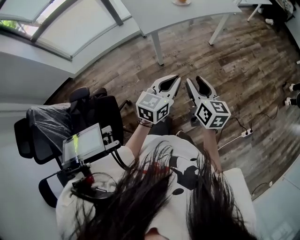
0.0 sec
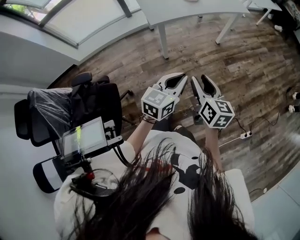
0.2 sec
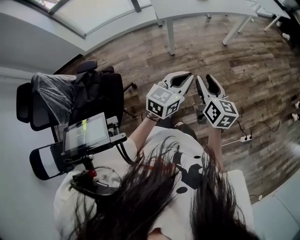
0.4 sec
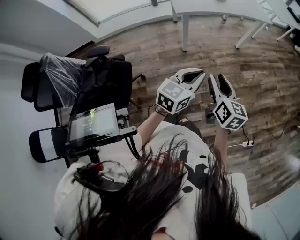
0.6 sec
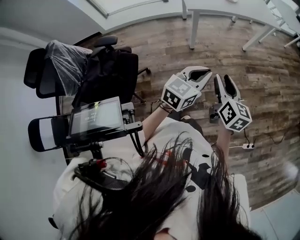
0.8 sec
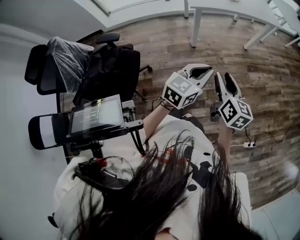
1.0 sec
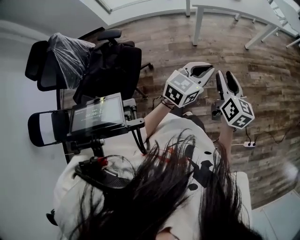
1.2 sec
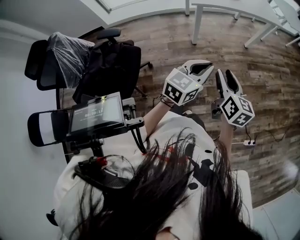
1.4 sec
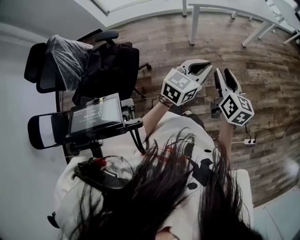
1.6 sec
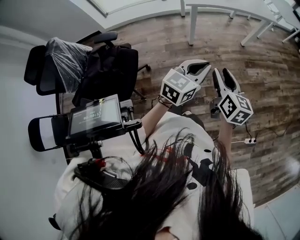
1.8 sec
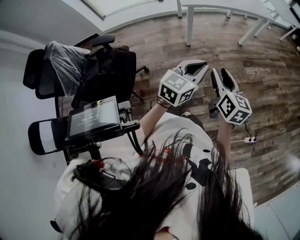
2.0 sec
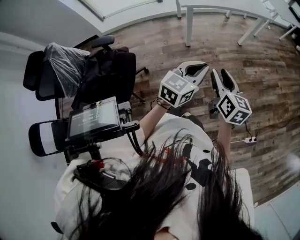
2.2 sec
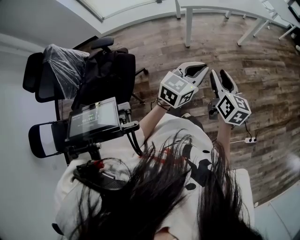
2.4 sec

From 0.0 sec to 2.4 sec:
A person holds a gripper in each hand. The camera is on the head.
From 0.0 sec to 1.2 sec: The two grippers go some 5 cm backward.
From 1.2 sec to 2.4 sec: There are only small adjustments of the grippers.

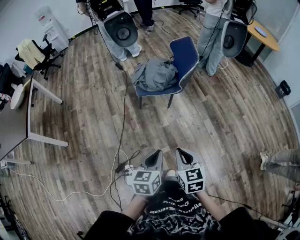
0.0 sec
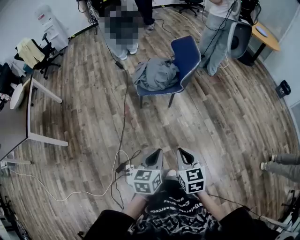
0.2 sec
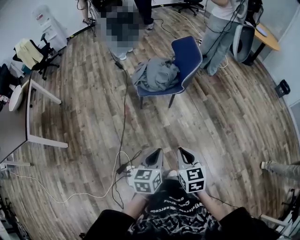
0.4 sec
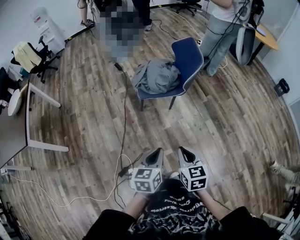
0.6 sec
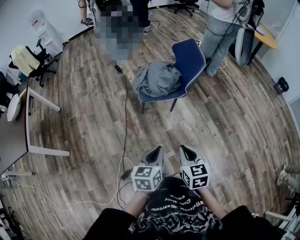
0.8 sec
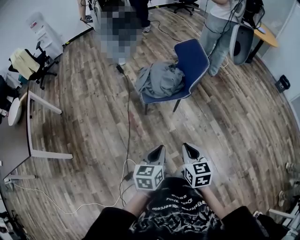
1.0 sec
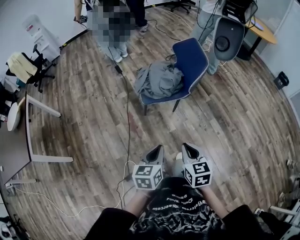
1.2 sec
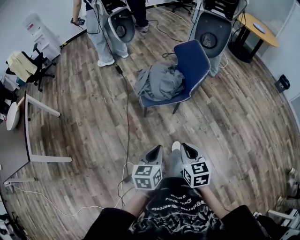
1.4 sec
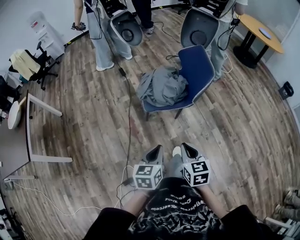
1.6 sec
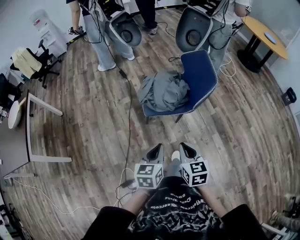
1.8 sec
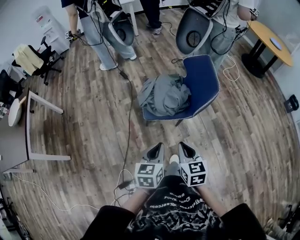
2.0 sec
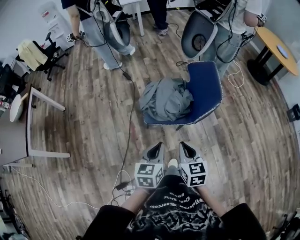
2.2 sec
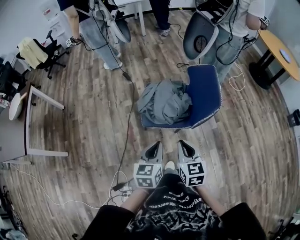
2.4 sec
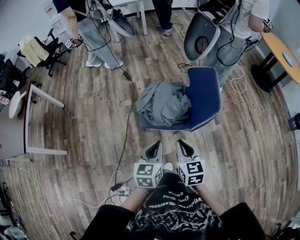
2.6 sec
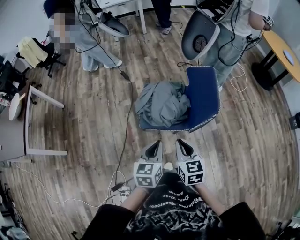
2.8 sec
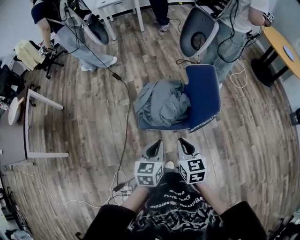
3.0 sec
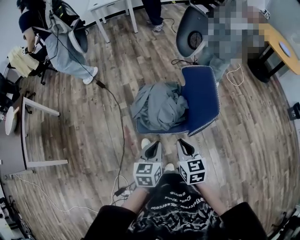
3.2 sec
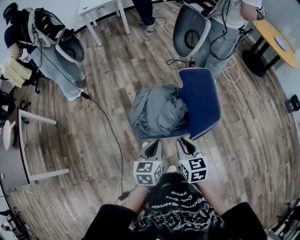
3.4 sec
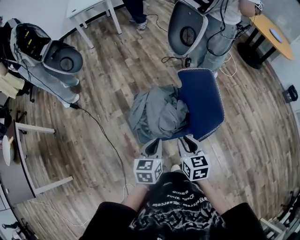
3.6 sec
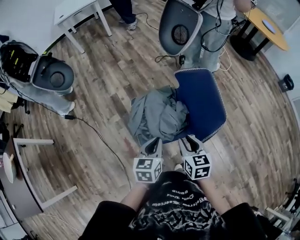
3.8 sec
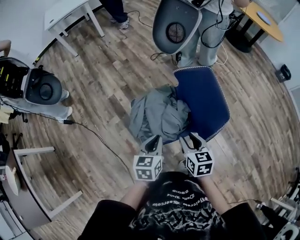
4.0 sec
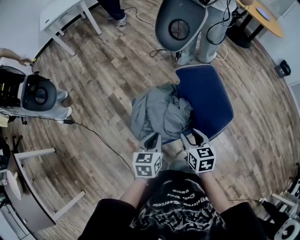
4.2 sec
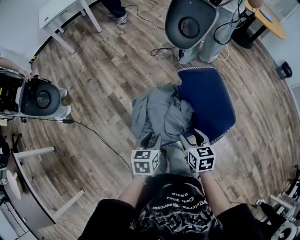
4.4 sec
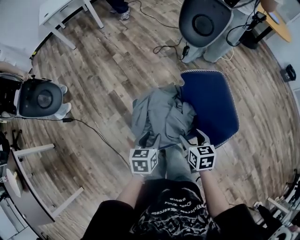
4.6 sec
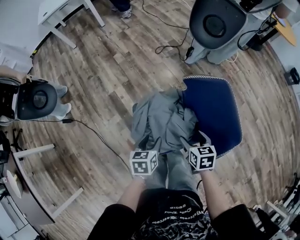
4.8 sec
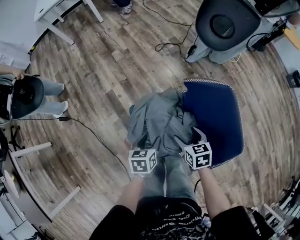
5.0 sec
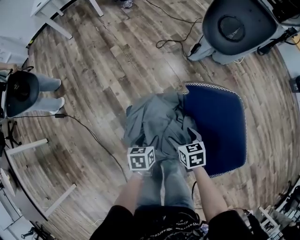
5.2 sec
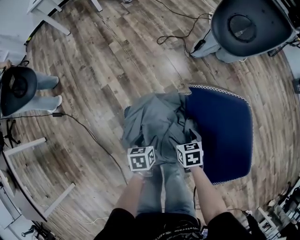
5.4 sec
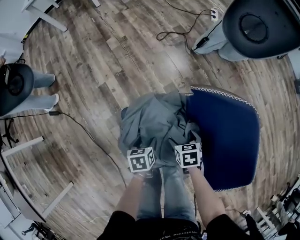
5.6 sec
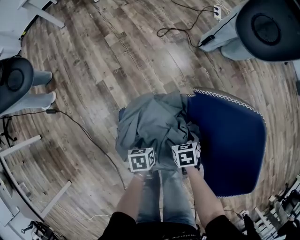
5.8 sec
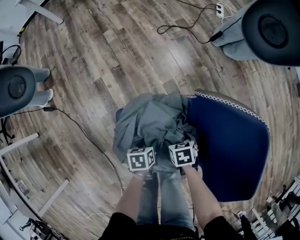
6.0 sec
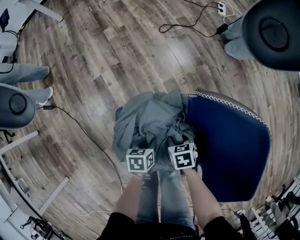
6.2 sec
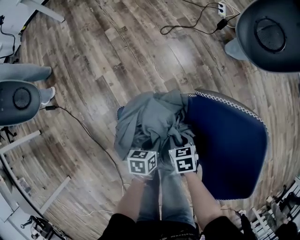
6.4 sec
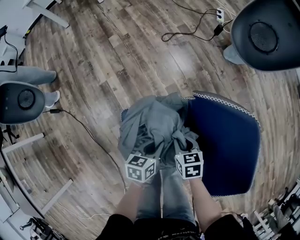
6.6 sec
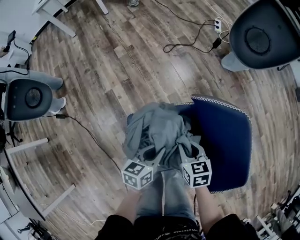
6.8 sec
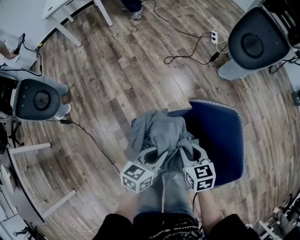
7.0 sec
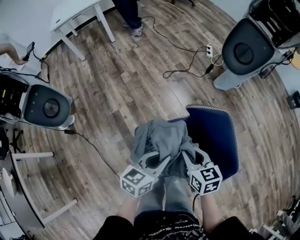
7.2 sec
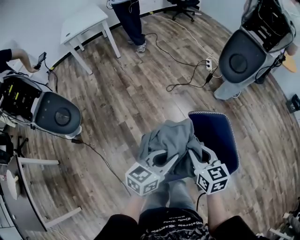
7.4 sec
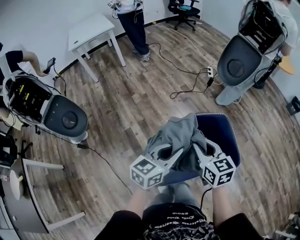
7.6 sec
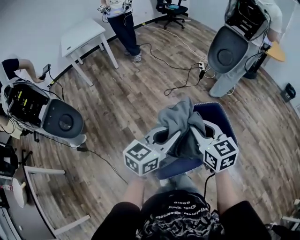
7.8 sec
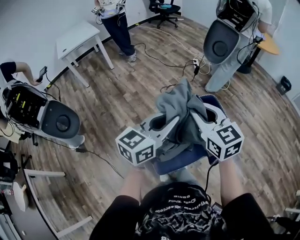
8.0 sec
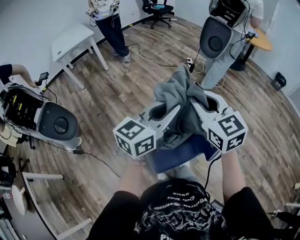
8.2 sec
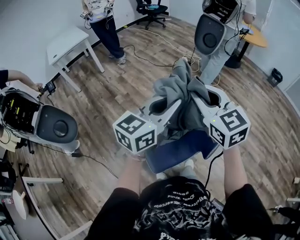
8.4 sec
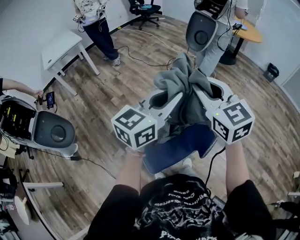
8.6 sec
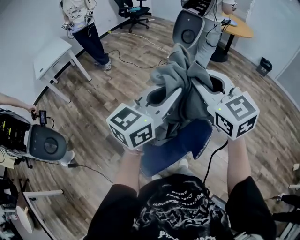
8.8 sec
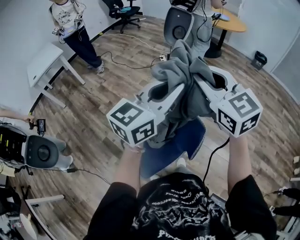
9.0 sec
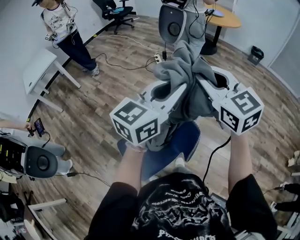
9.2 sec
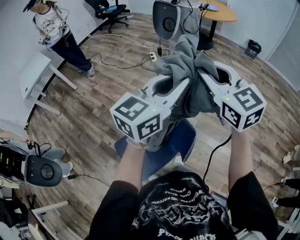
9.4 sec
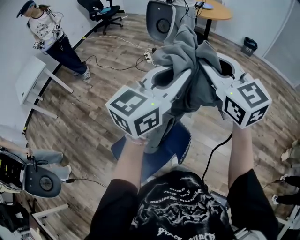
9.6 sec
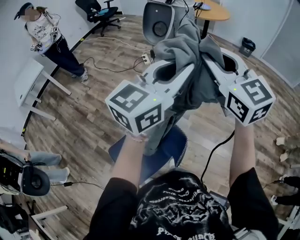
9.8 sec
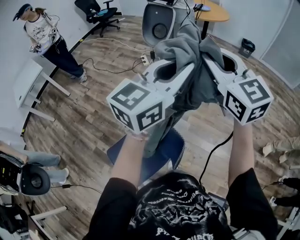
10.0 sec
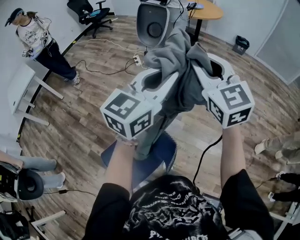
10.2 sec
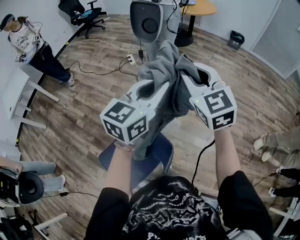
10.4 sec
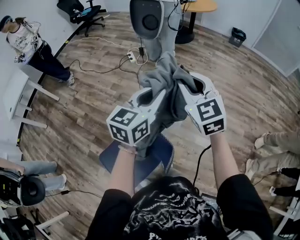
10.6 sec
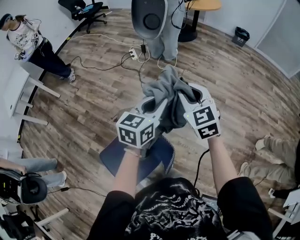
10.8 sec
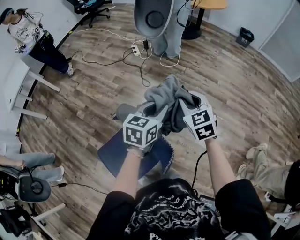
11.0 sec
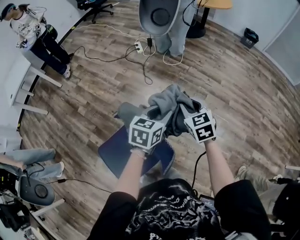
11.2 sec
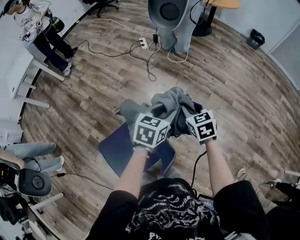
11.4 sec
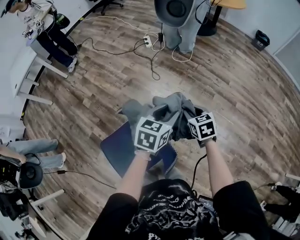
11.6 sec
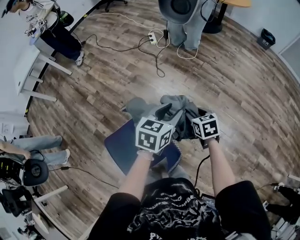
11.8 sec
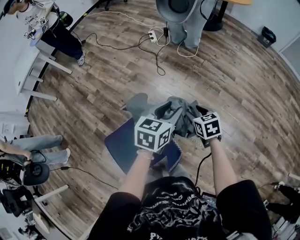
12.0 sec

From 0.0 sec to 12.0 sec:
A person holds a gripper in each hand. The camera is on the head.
From 0.0 sec to 1.6 sec: Both grippers move forward and to the left, some 20 cm.
From 1.6 sec to 3.0 sec: The right gripper shifts some 20 cm forward. The left gripper goes roughly 20 cm forward and to the right.
From 3.0 sec to 4.4 sec: The left gripper moves forward and to the left, roughly 25 cm, changes its angle by about 30 degrees, and opens. Meanwhile the right gripper heads forward, covering some 15 cm, changes its angle by approximately 30 degrees, and opens its fingers.
From 4.4 sec to 6.0 sec: The left gripper moves downward, about 30 cm, rotates some 30 degrees, and opens up. Meanwhile the right gripper goes roughly 30 cm downward and forward, rotates some 40 degrees, and opens.
From 6.0 sec to 7.6 sec: Both grippers move upward, approximately 40 cm. The right gripper points its fingers about 50 degrees further upward, and closes up. The left gripper angles its fingers upward, by roughly 50 degrees, and closes.
From 7.6 sec to 9.0 sec: Both grippers travel together upward and to the right, approximately 30 cm. The left gripper turns by approximately 30 degrees. The right gripper turns by some 30 degrees.
From 9.0 sec to 10.4 sec: The two grippers go approximately 20 cm forward and to the right.
From 10.4 sec to 12.0 sec: The right gripper travels downward by about 35 cm, and angles its fingers downward, by roughly 40 degrees. The left gripper shifts approximately 20 cm downward, rotates about 30 degrees, and opens its fingers.

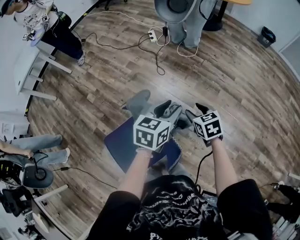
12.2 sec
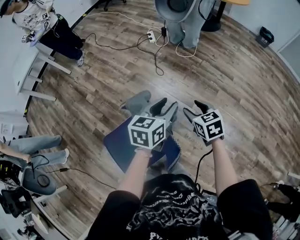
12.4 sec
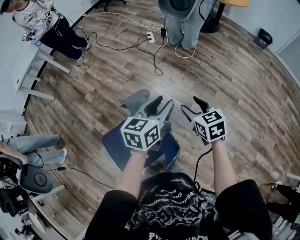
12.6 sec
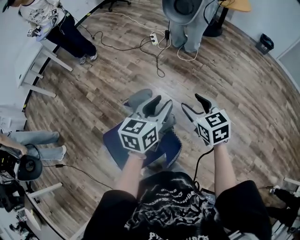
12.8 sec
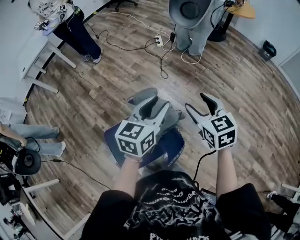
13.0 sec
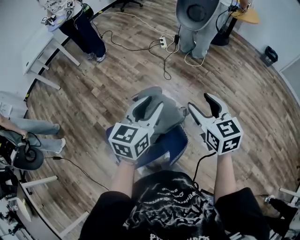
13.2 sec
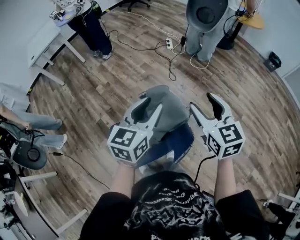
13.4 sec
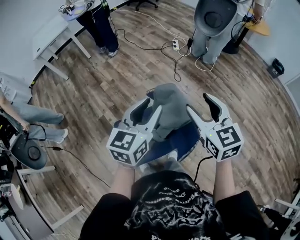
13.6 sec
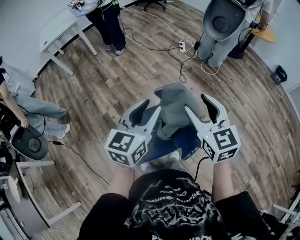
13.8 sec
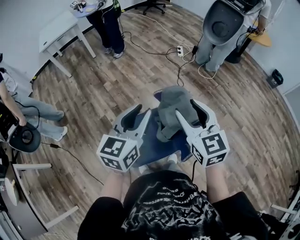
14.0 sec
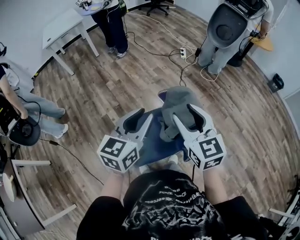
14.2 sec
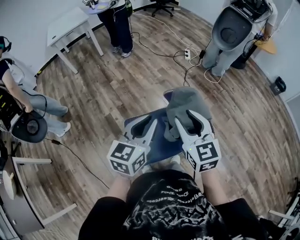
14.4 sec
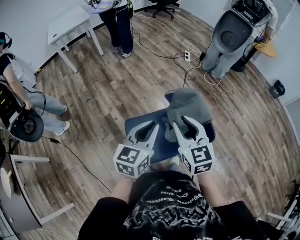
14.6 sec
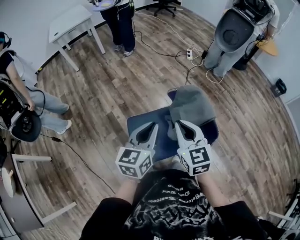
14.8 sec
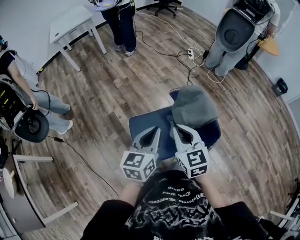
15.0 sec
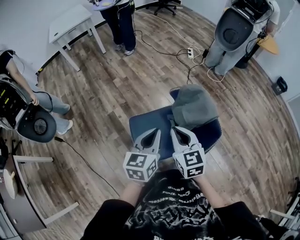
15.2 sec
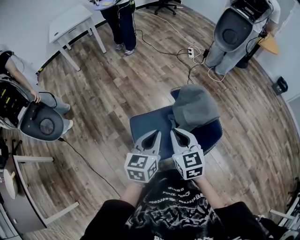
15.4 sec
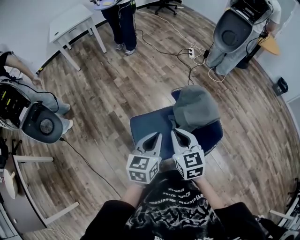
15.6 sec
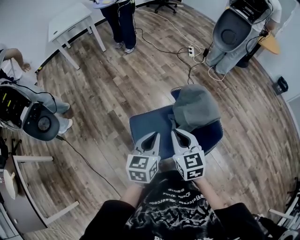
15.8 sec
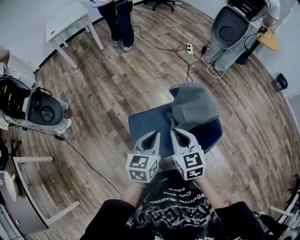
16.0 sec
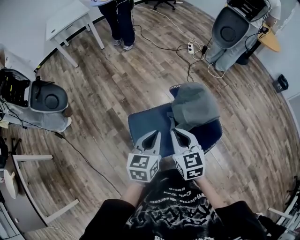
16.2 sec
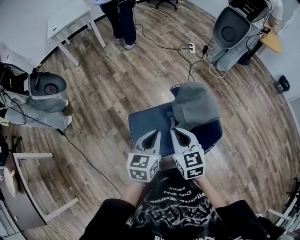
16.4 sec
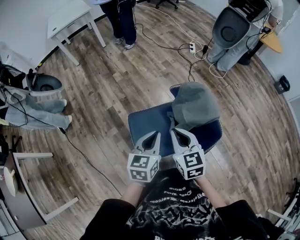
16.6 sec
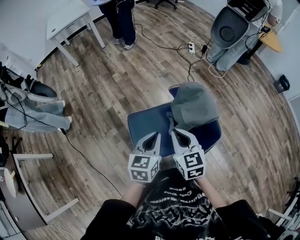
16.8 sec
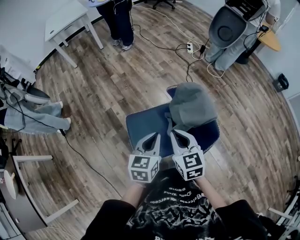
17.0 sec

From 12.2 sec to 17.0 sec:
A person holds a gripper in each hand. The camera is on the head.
From 12.2 sec to 13.8 sec: The left gripper moves to the left, upward and backward, roughly 30 cm, and swivels some 30 degrees. Meanwhile the right gripper shifts roughly 35 cm upward, to the left and backward, and points its fingers roughly 30 degrees further upward.
From 13.8 sec to 15.4 sec: The right gripper heads to the left, downward and backward, covering about 20 cm, and closes up, while the left gripper is displaced downward, backward and to the left by approximately 20 cm, and closes.
From 15.4 sec to 17.0 sec: The grippers make only small movements.

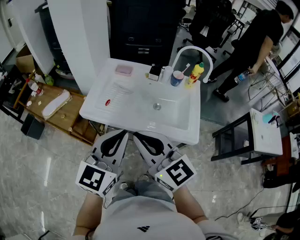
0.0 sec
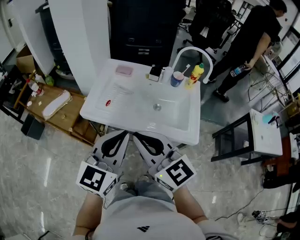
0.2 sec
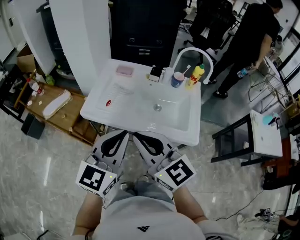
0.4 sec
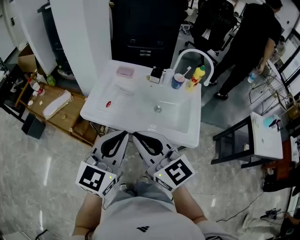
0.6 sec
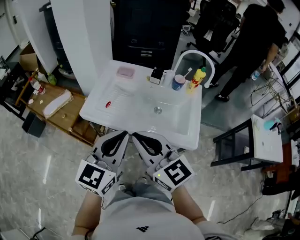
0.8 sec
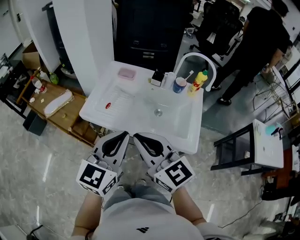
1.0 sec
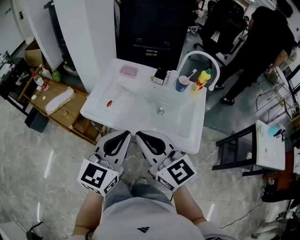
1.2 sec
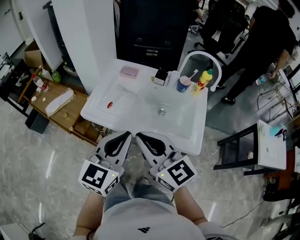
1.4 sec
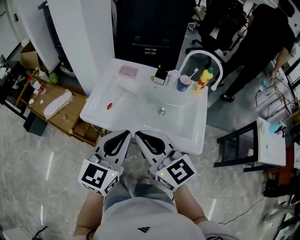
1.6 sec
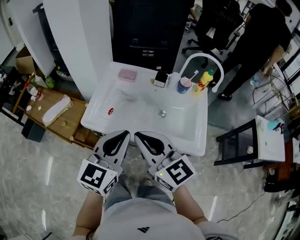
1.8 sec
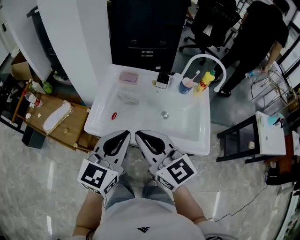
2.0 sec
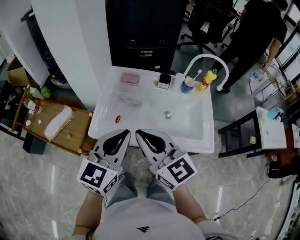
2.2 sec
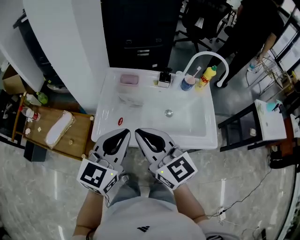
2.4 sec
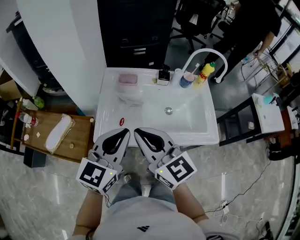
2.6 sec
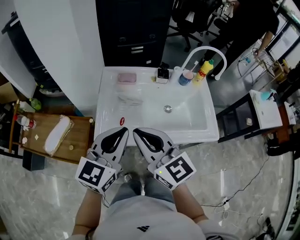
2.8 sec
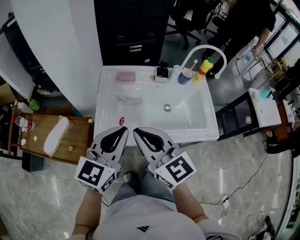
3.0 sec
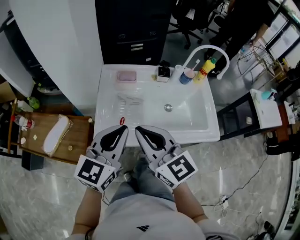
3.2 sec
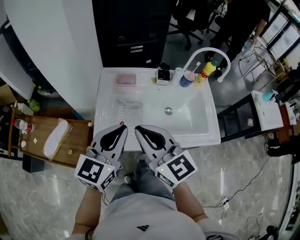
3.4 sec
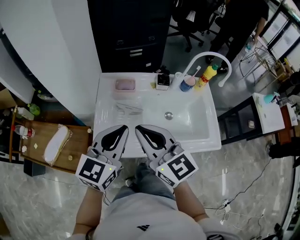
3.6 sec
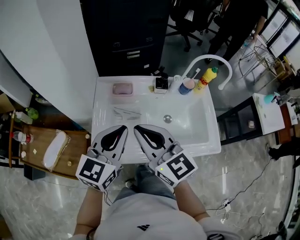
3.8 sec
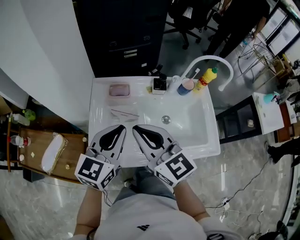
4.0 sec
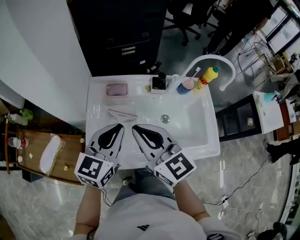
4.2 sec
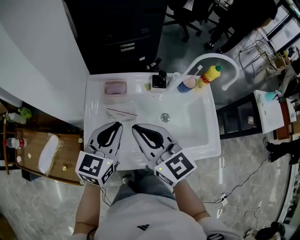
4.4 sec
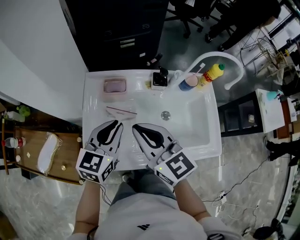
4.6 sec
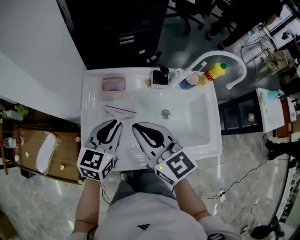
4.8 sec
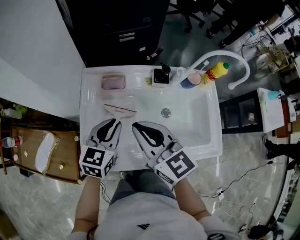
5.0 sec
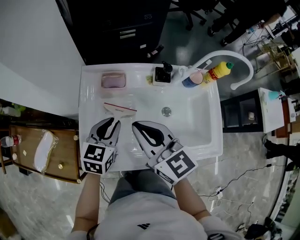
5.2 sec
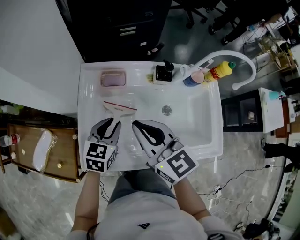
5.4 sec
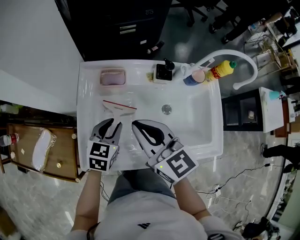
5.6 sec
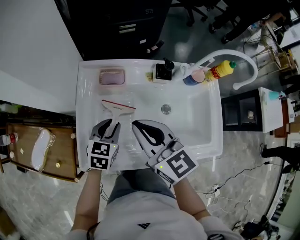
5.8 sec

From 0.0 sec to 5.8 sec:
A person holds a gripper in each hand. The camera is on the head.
From 0.0 sec to 1.4 sec: The grippers move only a little.
From 1.4 sec to 2.8 sec: The grippers both shift to the left and forward by approximately 20 cm.
From 2.8 sec to 4.4 sec: The right gripper goes roughly 15 cm forward. Meanwhile the left gripper moves forward and downward, approximately 20 cm.
From 4.4 sec to 5.8 sec: The left gripper is displaced downward by some 15 cm, rotates some 20 degrees, and opens its fingers. Meanwhile the right gripper goes some 5 cm downward.
